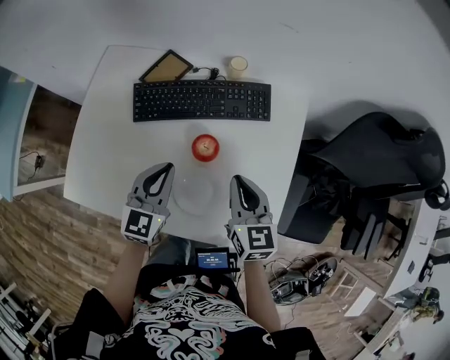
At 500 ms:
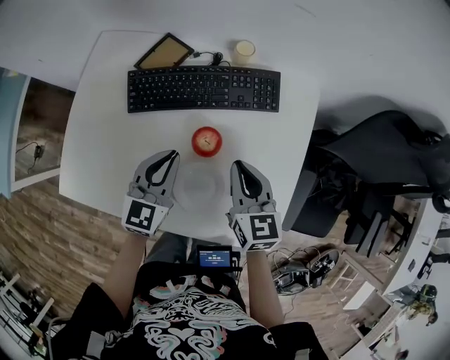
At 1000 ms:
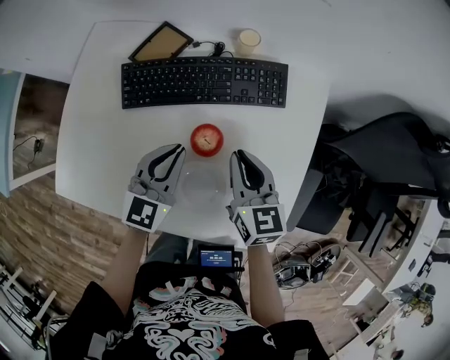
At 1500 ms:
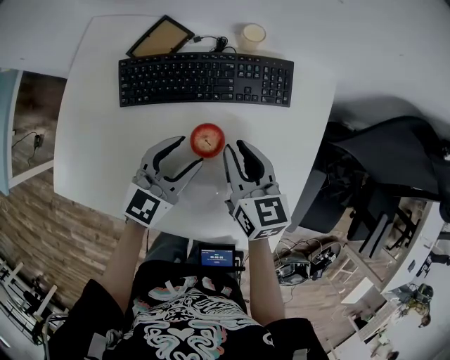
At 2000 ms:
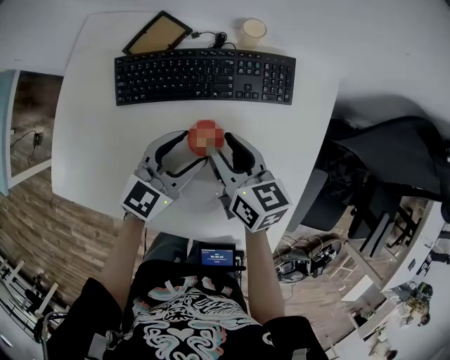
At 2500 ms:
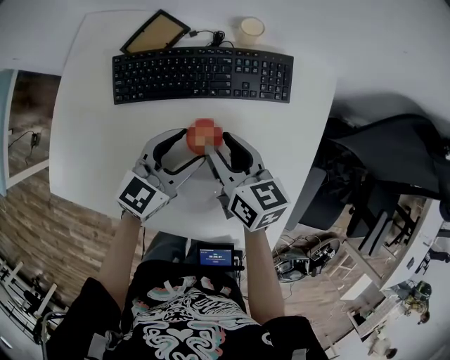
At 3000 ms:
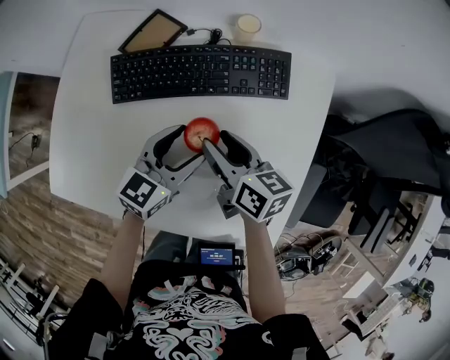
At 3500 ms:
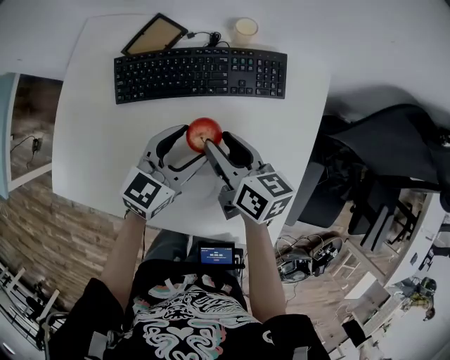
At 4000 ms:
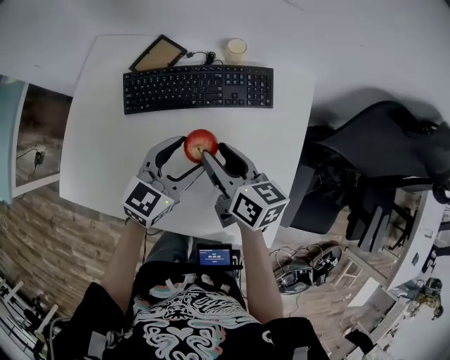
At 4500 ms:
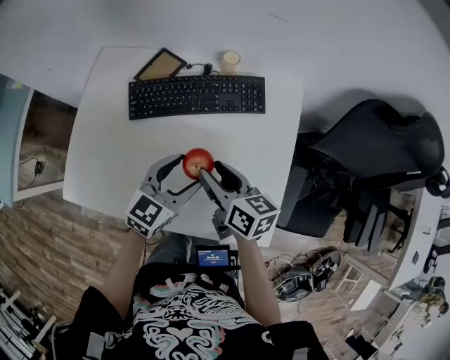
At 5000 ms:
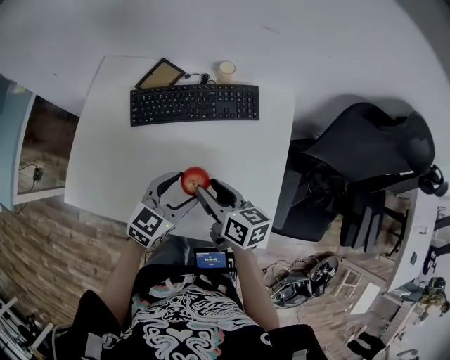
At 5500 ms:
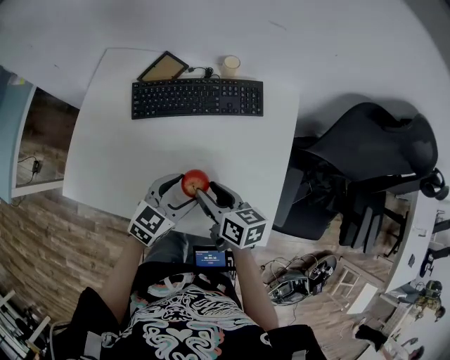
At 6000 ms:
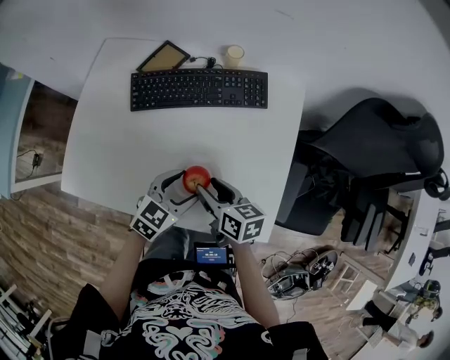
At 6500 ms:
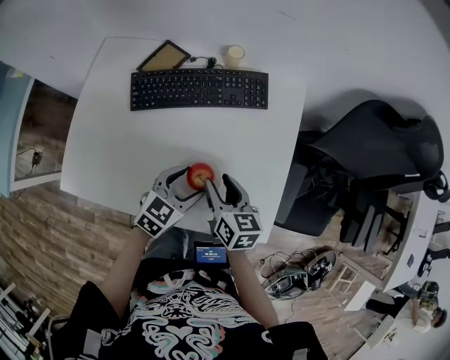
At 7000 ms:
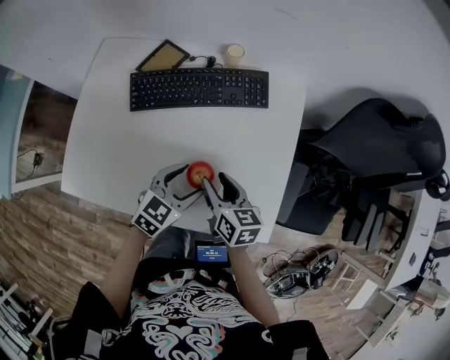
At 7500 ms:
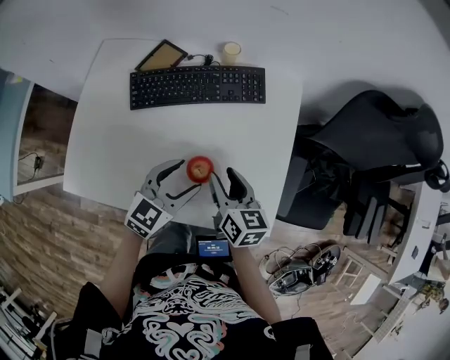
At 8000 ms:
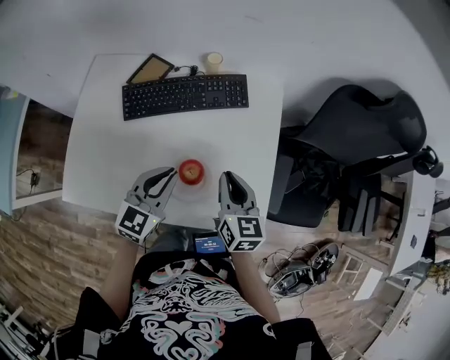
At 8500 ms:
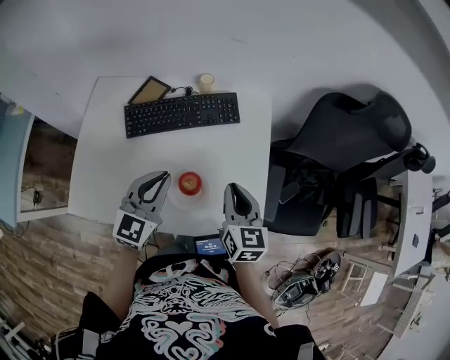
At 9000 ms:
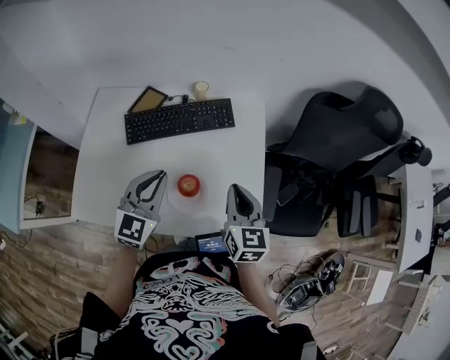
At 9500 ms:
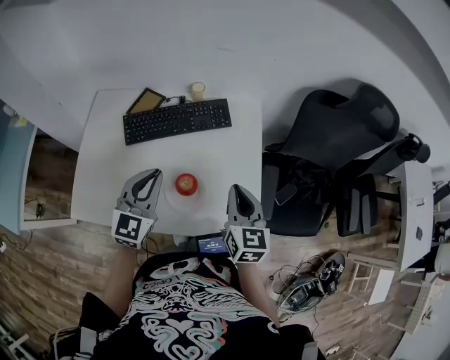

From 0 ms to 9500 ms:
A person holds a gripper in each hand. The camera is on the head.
From 0 ms to 2000 ms: The left gripper heads downward, to the right and forward, covering roughly 10 cm, and opens its fingers, while the right gripper travels forward, downward and to the left by about 15 cm, changes its angle by about 30 degrees, and opens its fingers.
From 2000 ms to 4000 ms: The grippers both shift upward by about 5 cm.
From 4000 ms to 5500 ms: Both grippers move backward, some 10 cm.
From 5500 ms to 7500 ms: The right gripper rotates some 20 degrees.
From 7500 ms to 9500 ms: The right gripper heads upward and to the right, covering roughly 15 cm, rotates roughly 30 degrees, and closes its fingers; the left gripper travels upward by approximately 15 cm, swivels about 20 degrees, and closes.

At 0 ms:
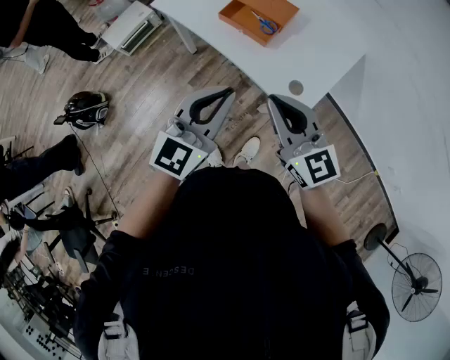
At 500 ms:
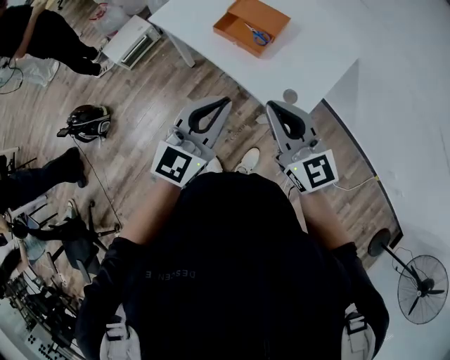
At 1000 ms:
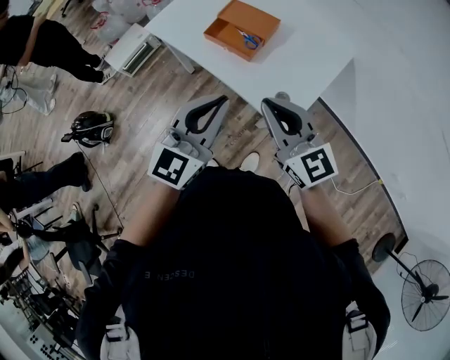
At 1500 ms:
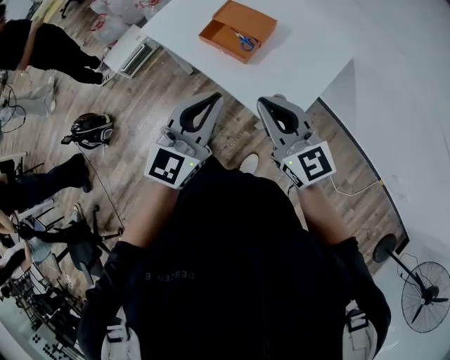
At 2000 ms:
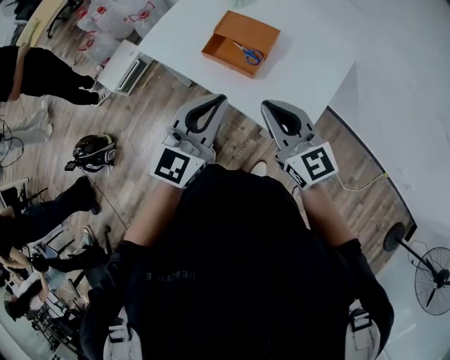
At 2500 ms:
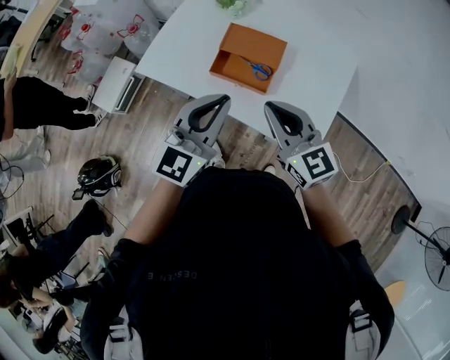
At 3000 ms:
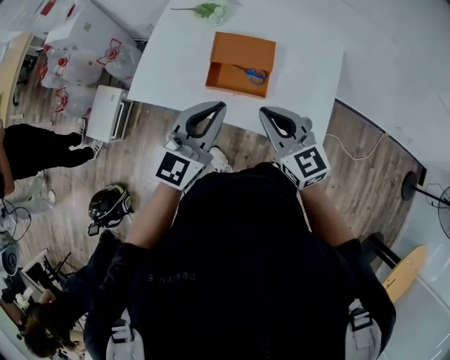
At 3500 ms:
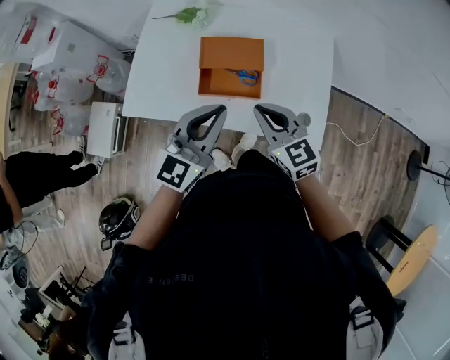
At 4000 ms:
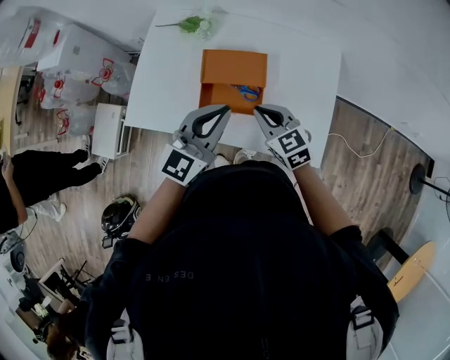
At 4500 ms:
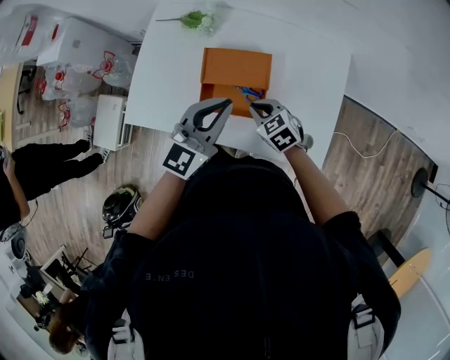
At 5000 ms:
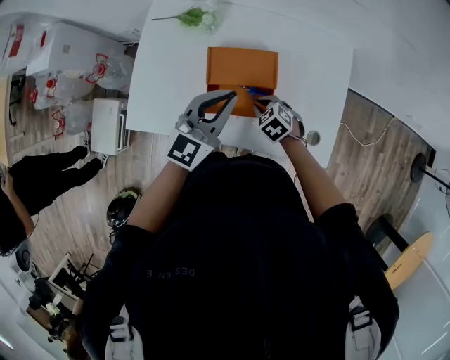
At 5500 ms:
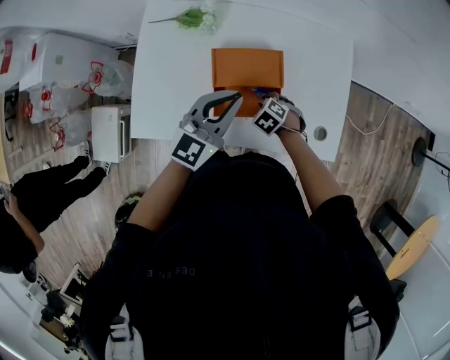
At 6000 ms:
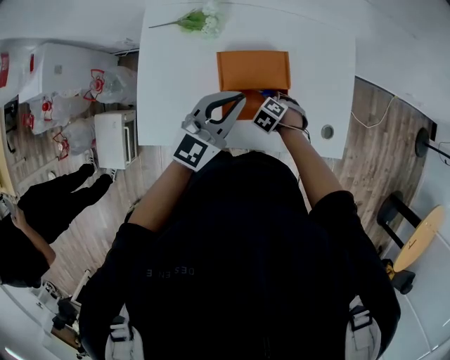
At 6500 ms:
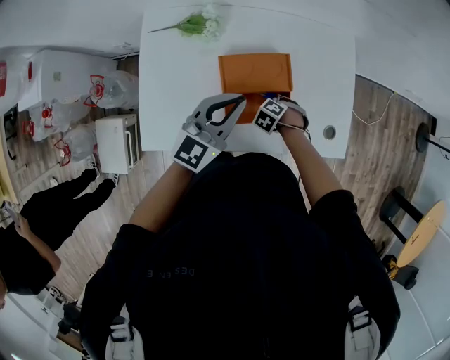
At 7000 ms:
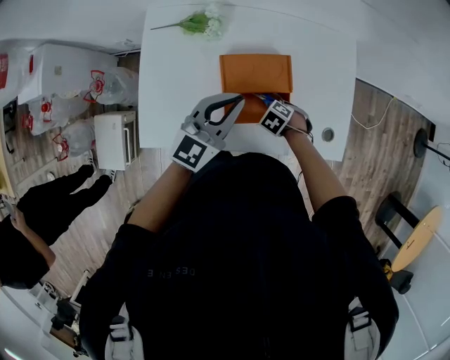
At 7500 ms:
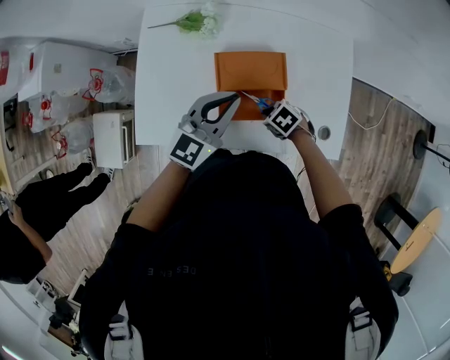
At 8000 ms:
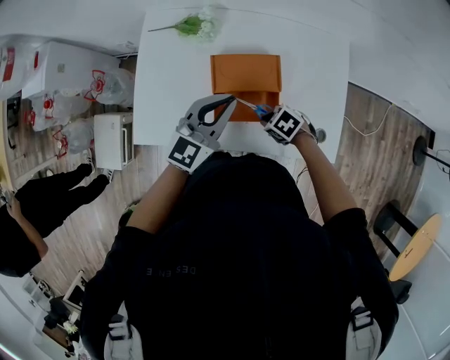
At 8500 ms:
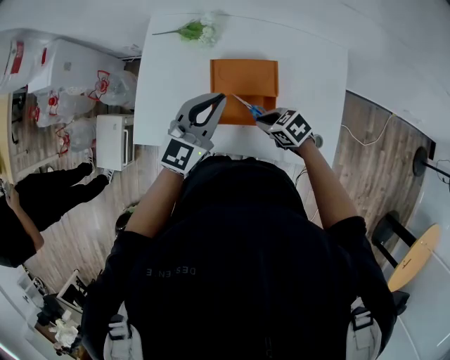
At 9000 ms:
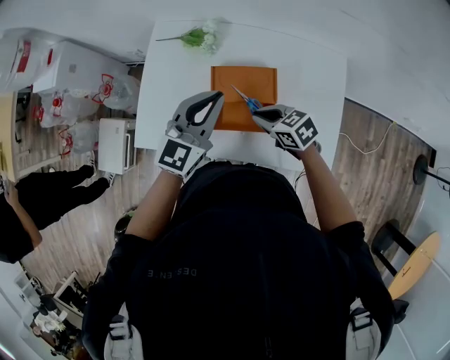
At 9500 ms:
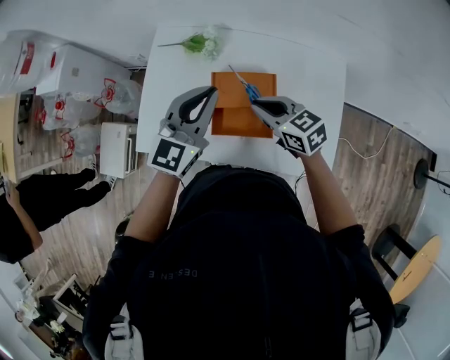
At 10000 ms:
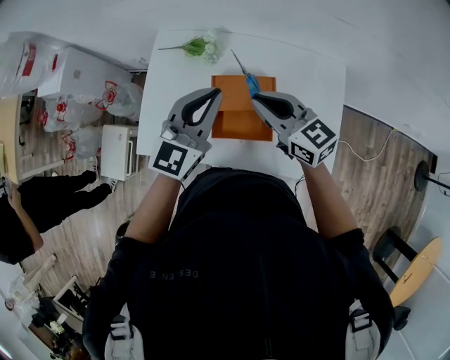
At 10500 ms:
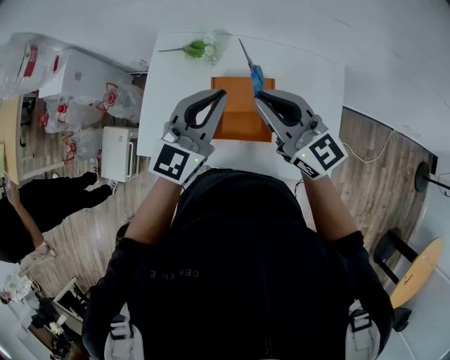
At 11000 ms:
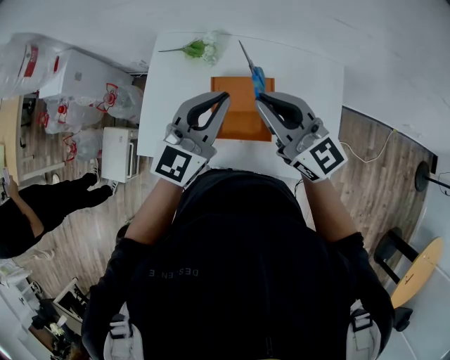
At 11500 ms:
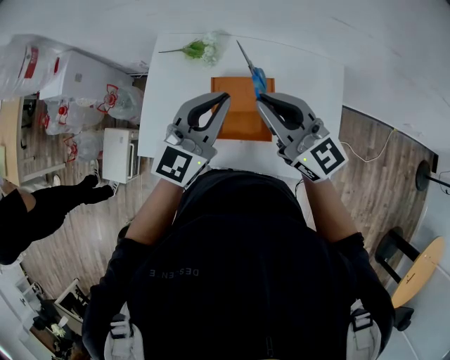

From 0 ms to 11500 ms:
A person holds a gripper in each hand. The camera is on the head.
From 0 ms to 2000 ms: Both grippers travel together forward, some 10 cm.
From 2000 ms to 4000 ms: The left gripper shifts by approximately 20 cm, and swivels approximately 30 degrees; the right gripper ends up roughly 25 cm from where it was, and rotates about 30 degrees.
From 4000 ms to 6000 ms: The right gripper travels downward by some 25 cm, and angles its fingers downward, by roughly 50 degrees. The left gripper ends up approximately 10 cm from where it was.
From 6000 ms to 7500 ms: The right gripper shifts by approximately 5 cm, and turns by some 30 degrees.
From 7500 ms to 9500 ms: The left gripper travels upward by roughly 10 cm. The right gripper is displaced upward by approximately 20 cm, and points its fingers approximately 40 degrees further upward.
From 9500 ms to 11500 ms: The right gripper goes approximately 15 cm upward, and angles its fingers upward, by roughly 30 degrees; the left gripper changes place by roughly 5 cm.

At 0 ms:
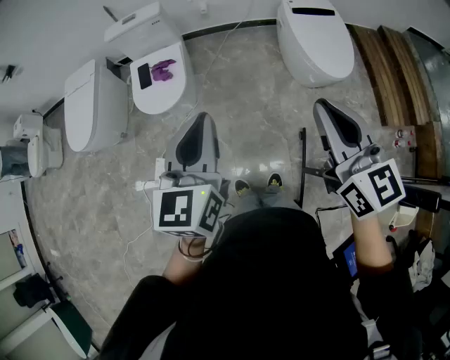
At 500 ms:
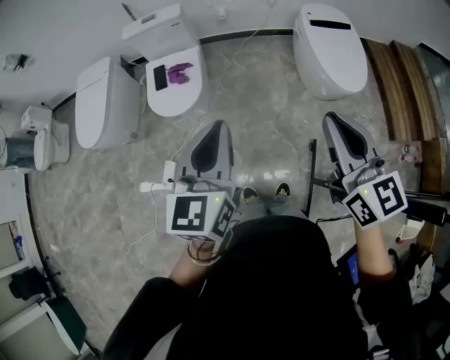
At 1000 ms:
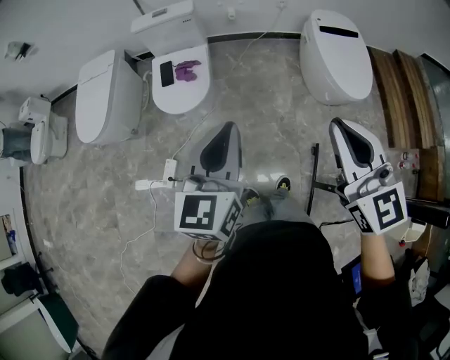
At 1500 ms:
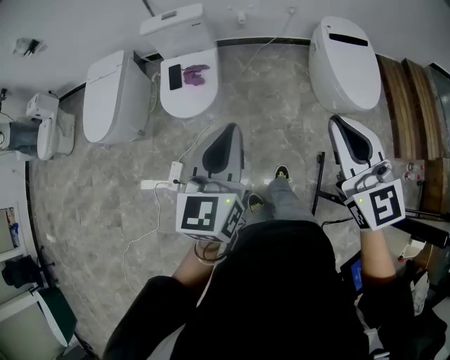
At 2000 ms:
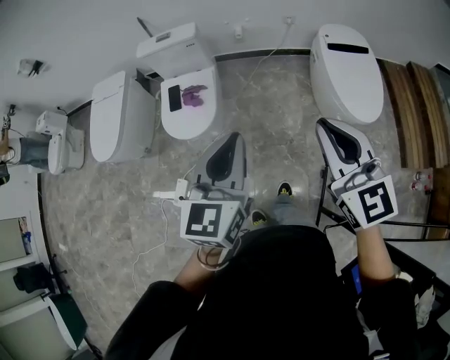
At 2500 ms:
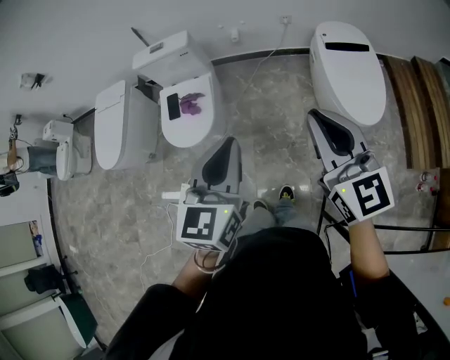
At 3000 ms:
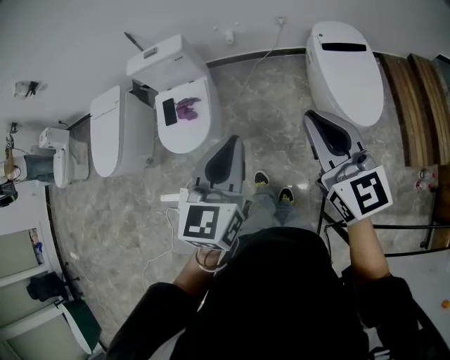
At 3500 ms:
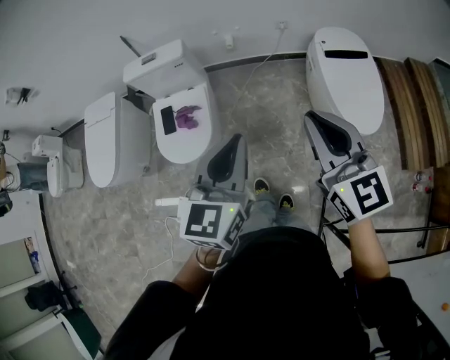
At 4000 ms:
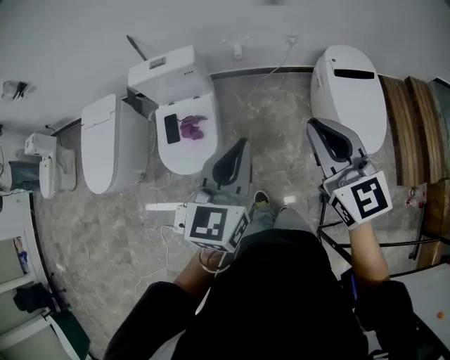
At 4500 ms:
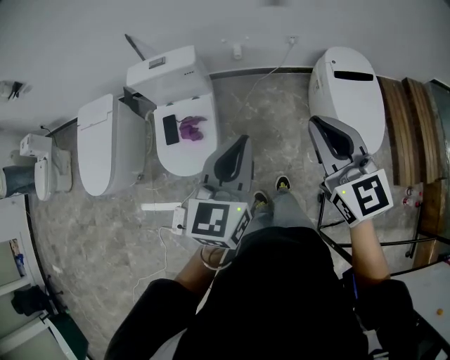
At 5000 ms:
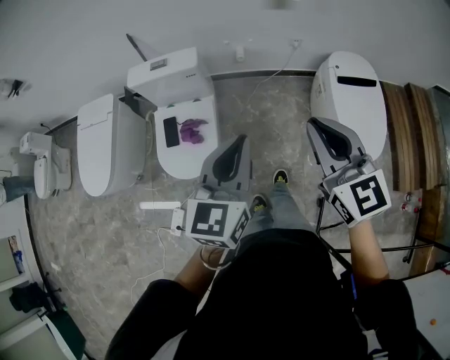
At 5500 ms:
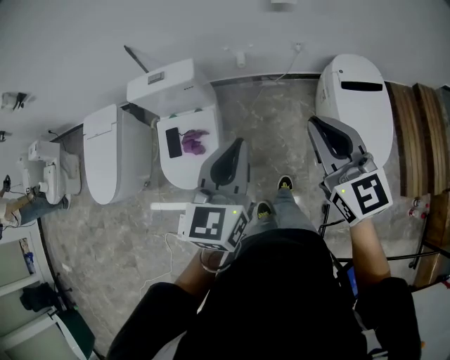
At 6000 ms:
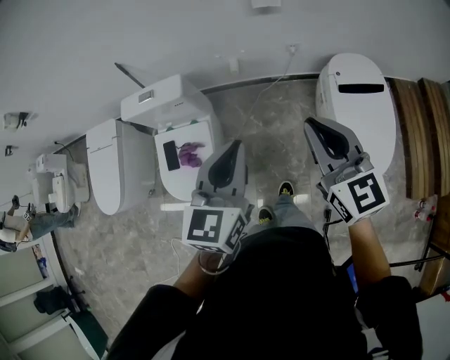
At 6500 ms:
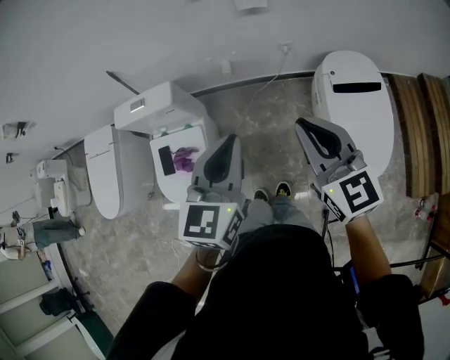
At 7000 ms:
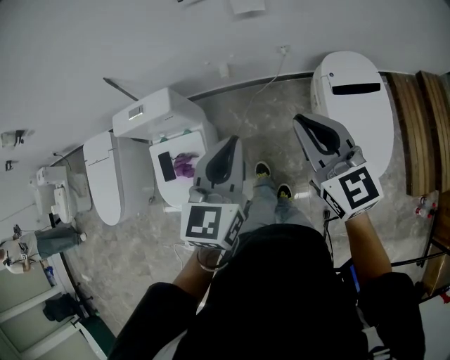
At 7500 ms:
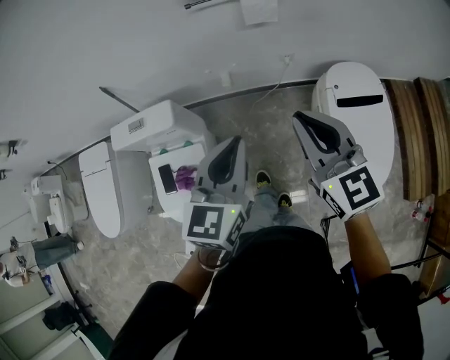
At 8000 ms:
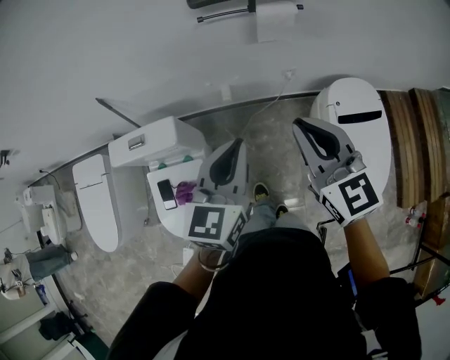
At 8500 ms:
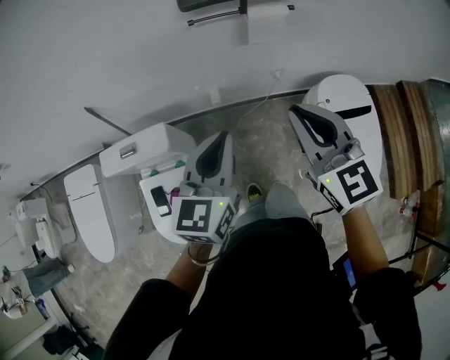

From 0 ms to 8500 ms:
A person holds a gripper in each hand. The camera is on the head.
From 0 ms to 2000 ms: Both grippers move forward, about 10 cm.
From 2000 ms to 4000 ms: The grippers both shift forward by some 20 cm.
From 4000 ms to 6500 ms: The grippers both shift forward and to the right by approximately 25 cm.
From 6500 ms to 8500 ms: The two grippers go some 20 cm forward.
